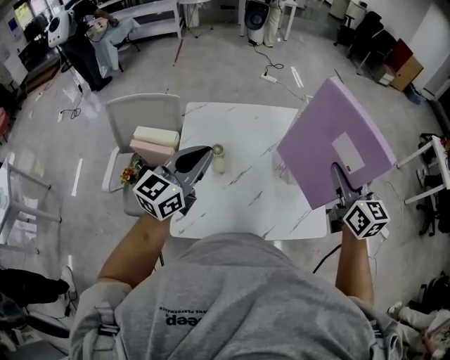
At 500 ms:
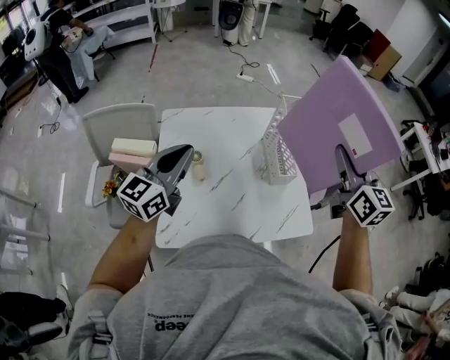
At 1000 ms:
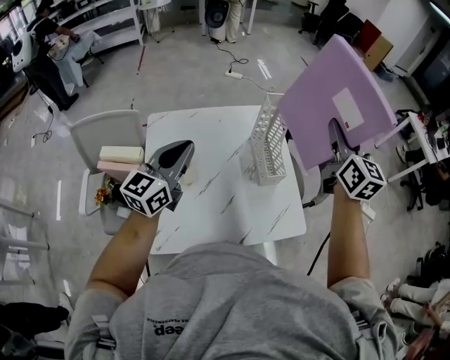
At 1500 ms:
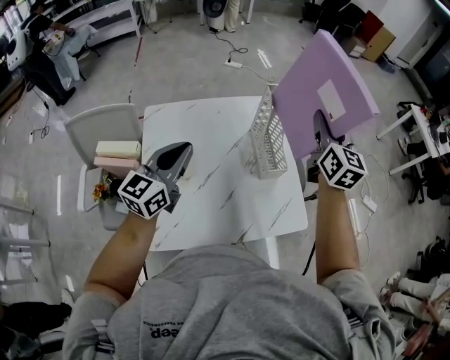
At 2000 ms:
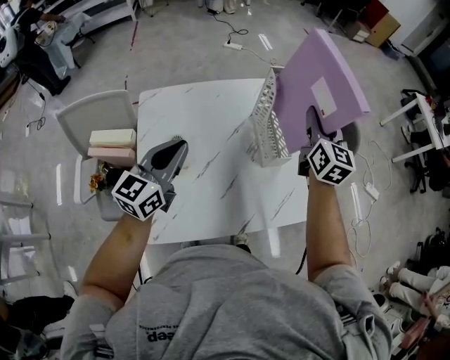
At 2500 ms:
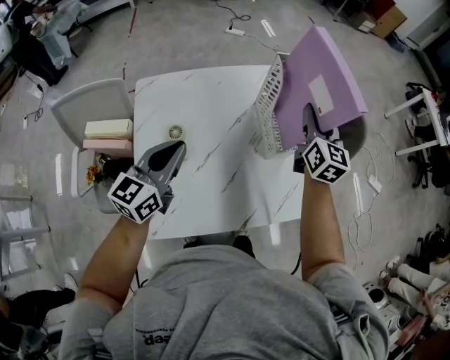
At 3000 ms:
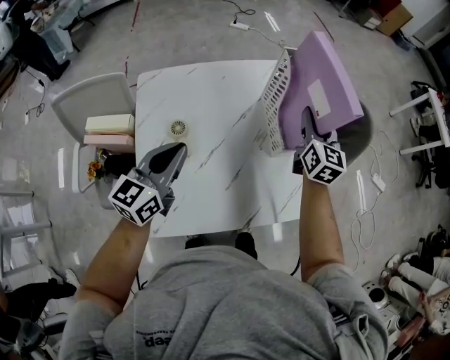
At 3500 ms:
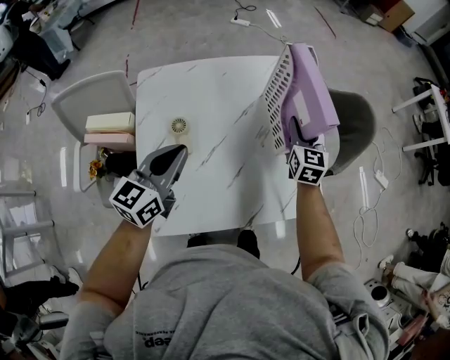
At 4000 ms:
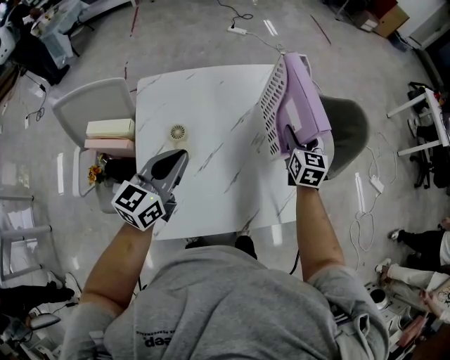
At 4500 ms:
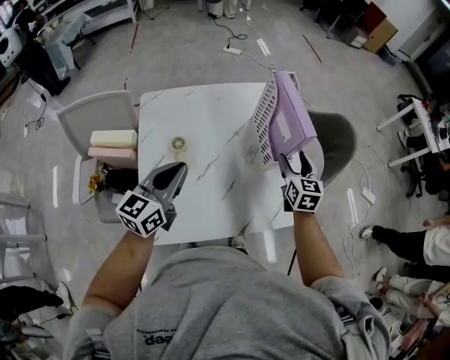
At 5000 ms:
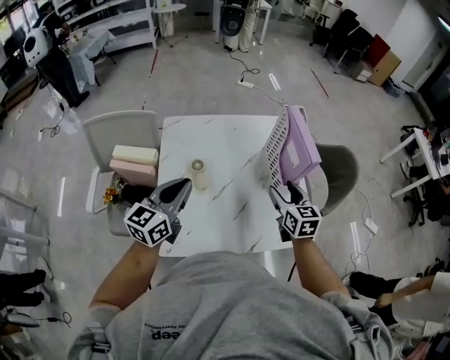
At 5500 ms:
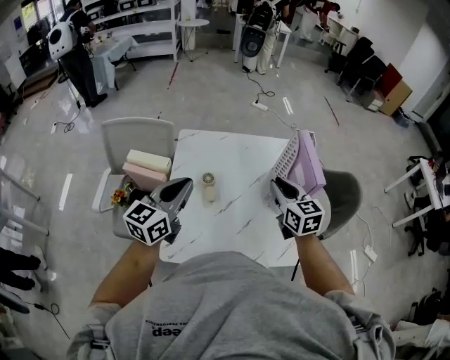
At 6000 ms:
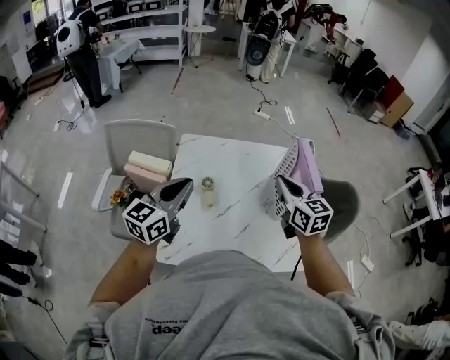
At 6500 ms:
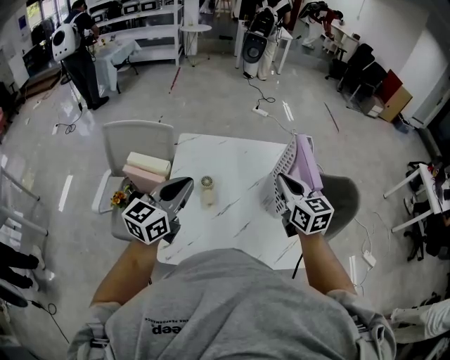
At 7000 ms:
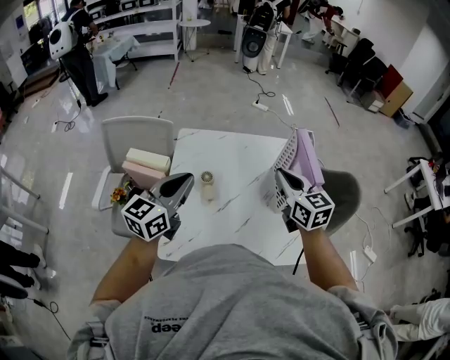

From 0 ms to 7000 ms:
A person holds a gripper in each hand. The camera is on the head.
From 0 ms to 2000 ms: The right gripper is displaced forward by approximately 15 cm, and changes its angle by some 20 degrees; the left gripper moves forward and downward, about 10 cm.
From 2000 ms to 3500 ms: The left gripper shifts some 5 cm downward, while the right gripper is displaced downward by roughly 20 cm.
From 3500 ms to 5000 ms: The left gripper shifts approximately 10 cm upward and backward. The right gripper goes about 15 cm backward and upward, and opens up.
From 5000 ms to 7000 ms: The left gripper goes some 5 cm upward. Meanwhile the right gripper is displaced upward and to the left by approximately 15 cm, changes its angle by some 20 degrees, and closes its fingers.

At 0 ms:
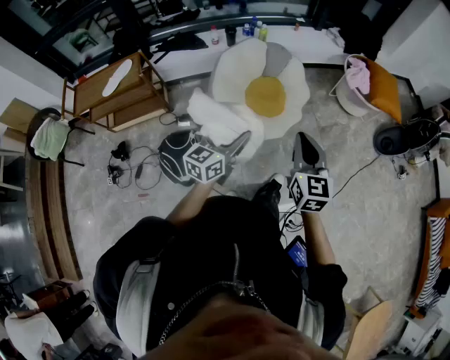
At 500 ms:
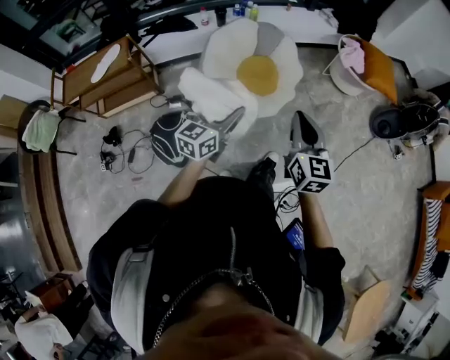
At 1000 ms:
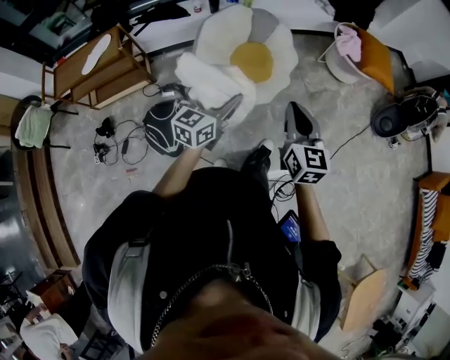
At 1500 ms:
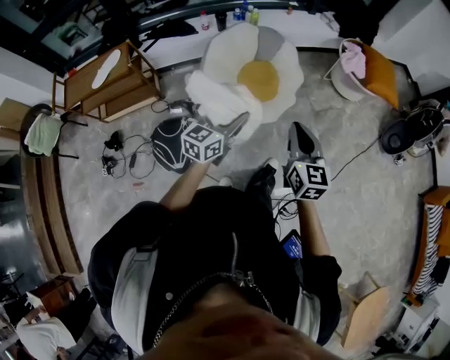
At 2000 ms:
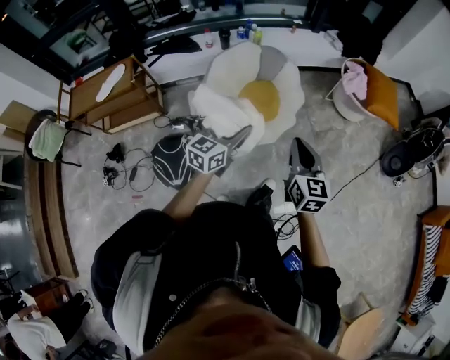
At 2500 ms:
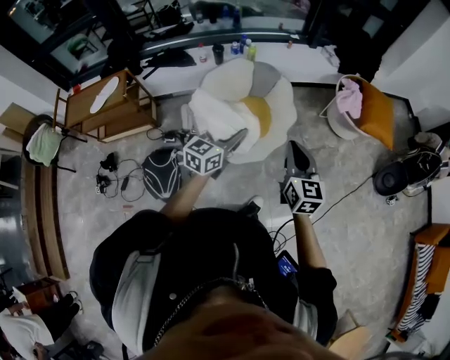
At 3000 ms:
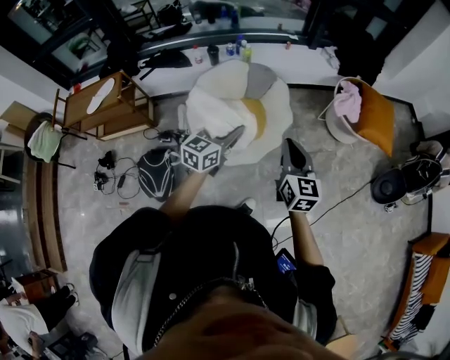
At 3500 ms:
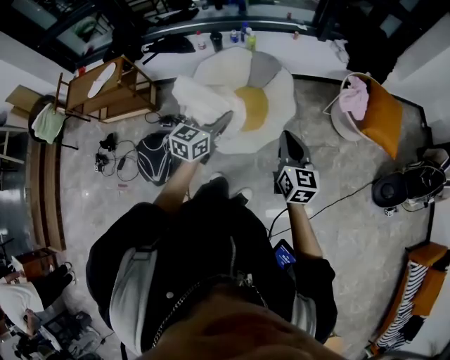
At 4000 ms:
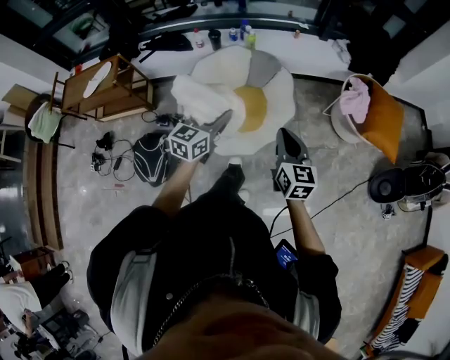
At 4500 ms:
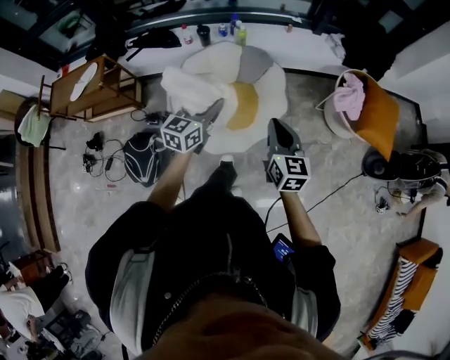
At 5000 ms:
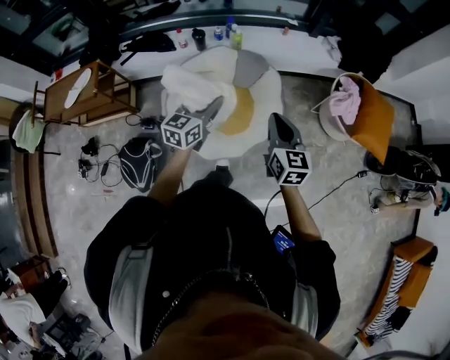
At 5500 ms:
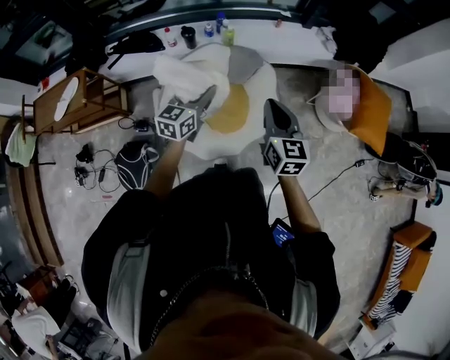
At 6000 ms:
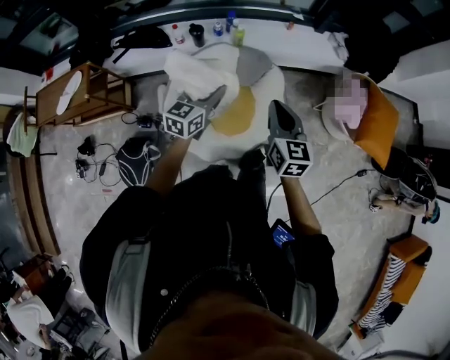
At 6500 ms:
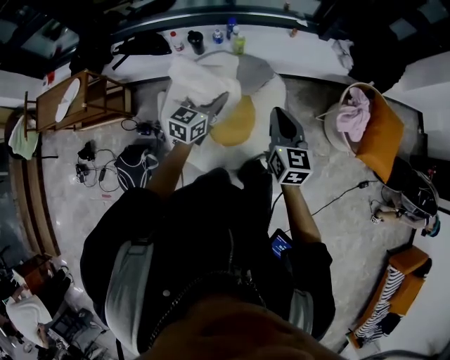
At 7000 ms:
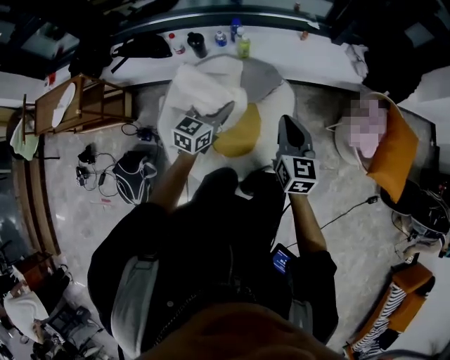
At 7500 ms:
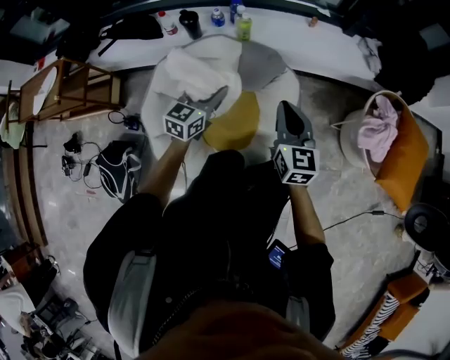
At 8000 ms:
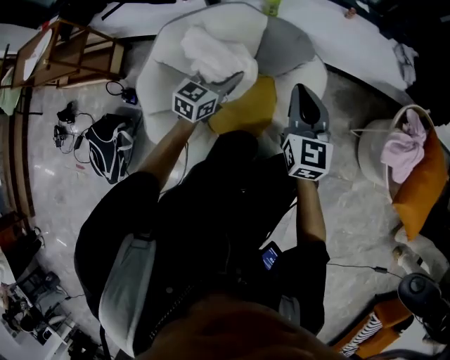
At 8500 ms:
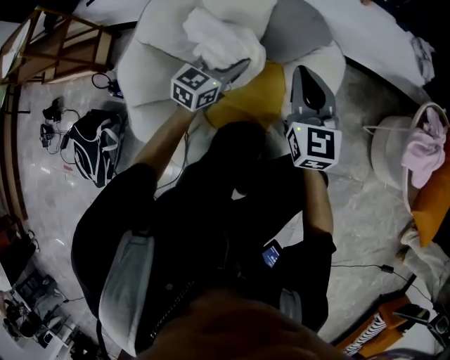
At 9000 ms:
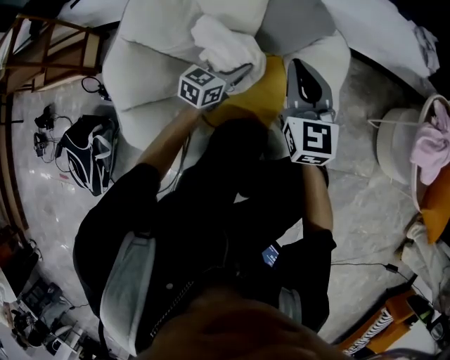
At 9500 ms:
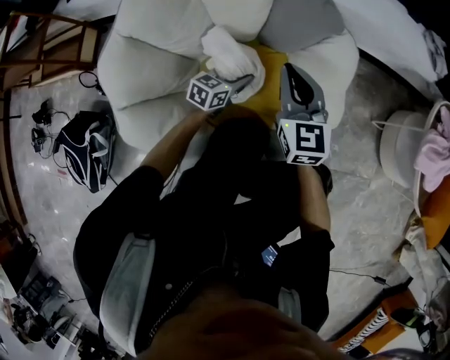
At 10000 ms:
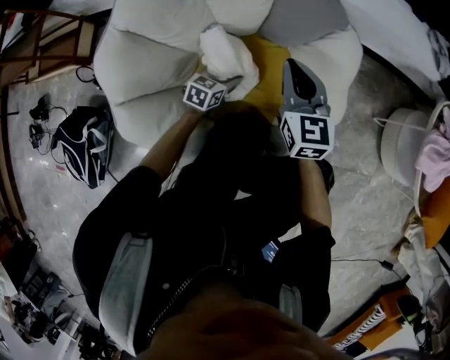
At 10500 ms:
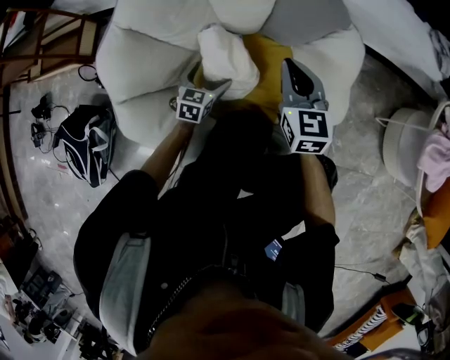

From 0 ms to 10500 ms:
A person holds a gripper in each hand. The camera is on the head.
From 0 ms to 2000 ms: Both grippers travel together forward, about 10 cm.
From 2000 ms to 4000 ms: Both grippers move forward and to the right, about 25 cm.
From 4000 ms to 6500 ms: The grippers both shift forward by some 30 cm.
From 6500 ms to 8500 ms: Both grippers travel together downward, roughly 40 cm. The right gripper changes its angle by approximately 20 degrees.
From 8500 ms to 10500 ms: The right gripper shifts roughly 15 cm downward, while the left gripper moves downward, some 25 cm, swivels some 30 degrees, and opens its fingers.

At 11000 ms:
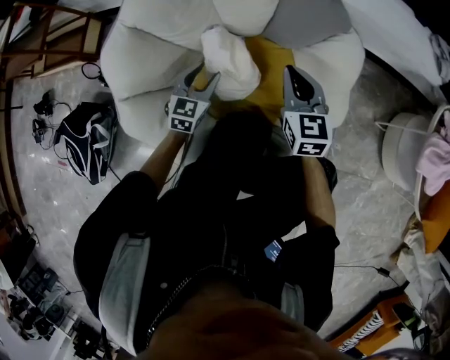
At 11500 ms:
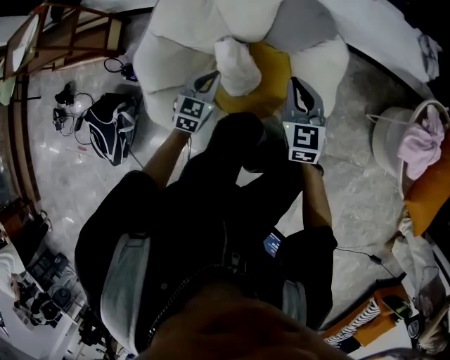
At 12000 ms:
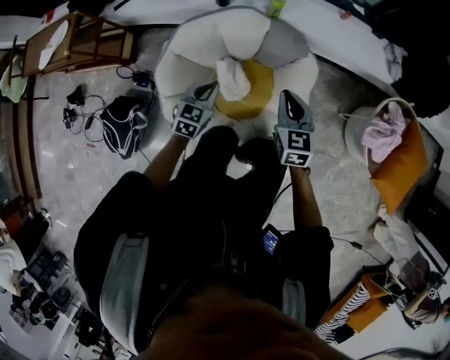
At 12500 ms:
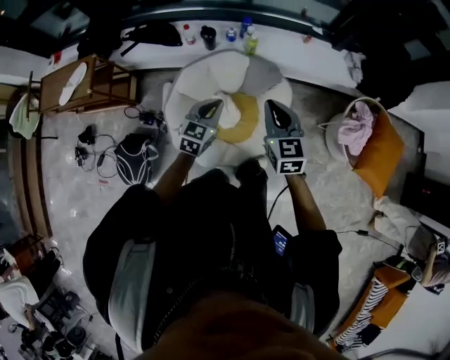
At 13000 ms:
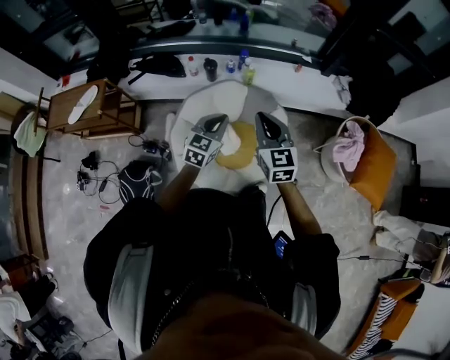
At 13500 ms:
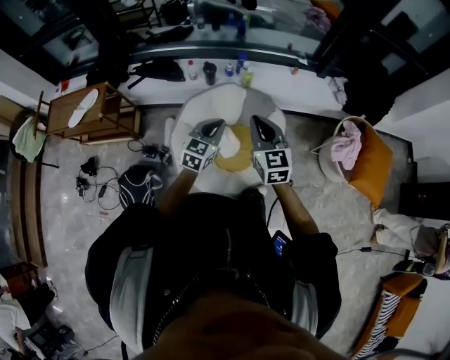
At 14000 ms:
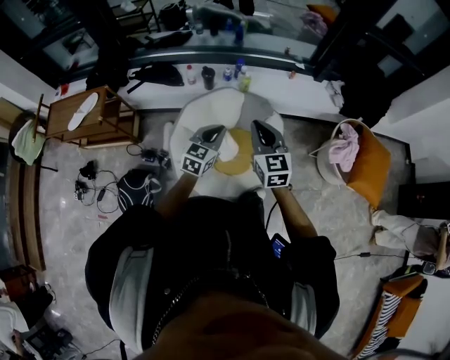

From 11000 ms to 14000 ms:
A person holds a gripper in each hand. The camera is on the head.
From 11000 ms to 12500 ms: The grippers both shift upward by some 60 cm. The left gripper closes its fingers.
From 12500 ms to 14000 ms: The right gripper is displaced upward and to the left by approximately 10 cm. The left gripper moves upward, about 5 cm.

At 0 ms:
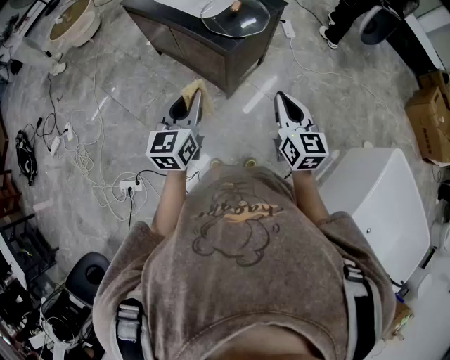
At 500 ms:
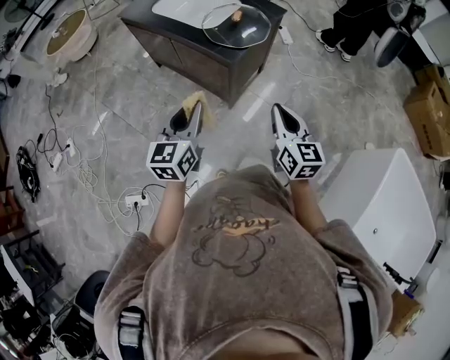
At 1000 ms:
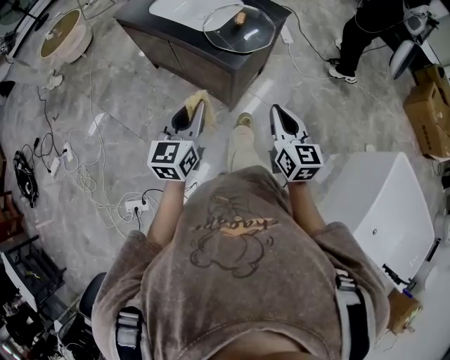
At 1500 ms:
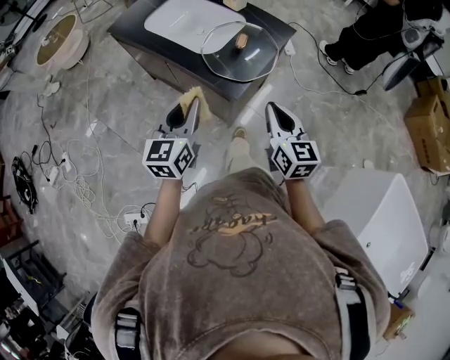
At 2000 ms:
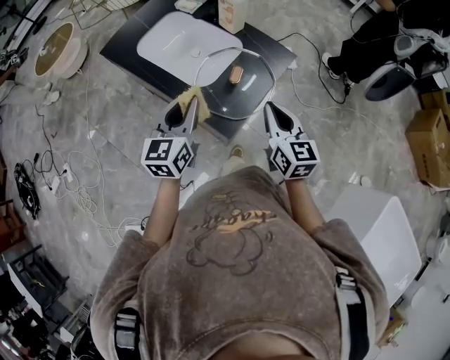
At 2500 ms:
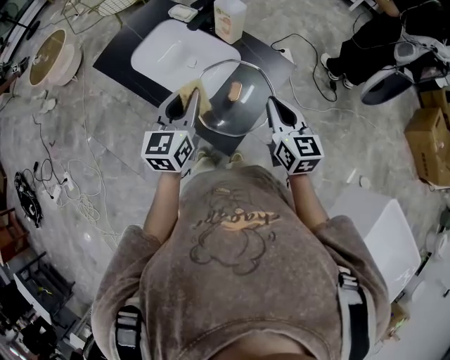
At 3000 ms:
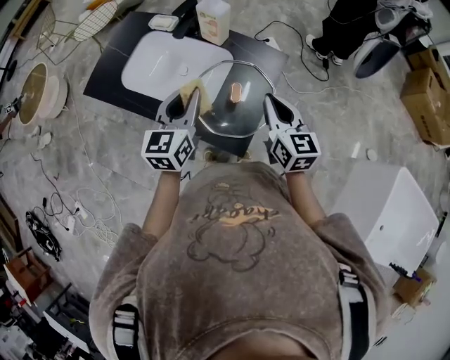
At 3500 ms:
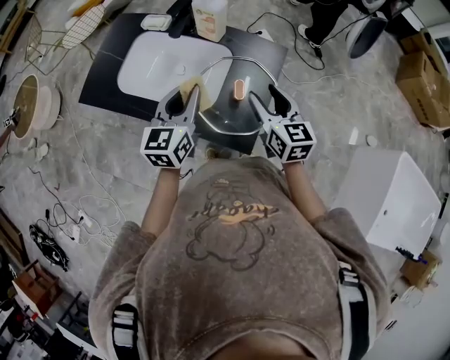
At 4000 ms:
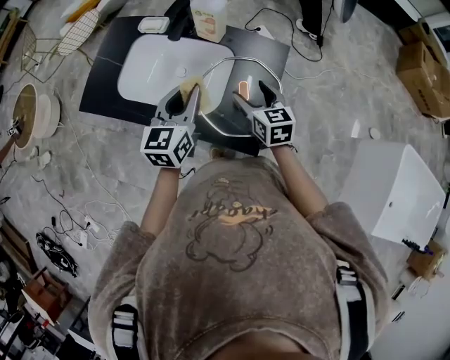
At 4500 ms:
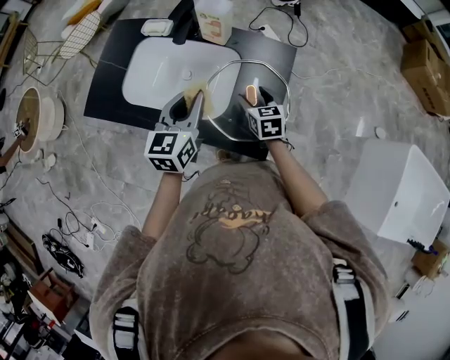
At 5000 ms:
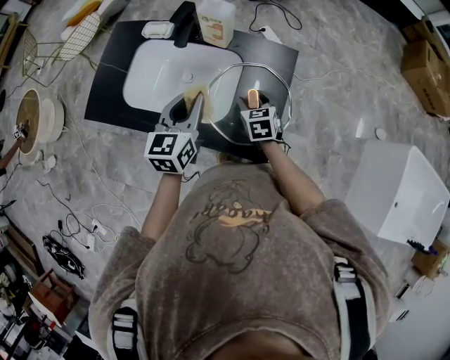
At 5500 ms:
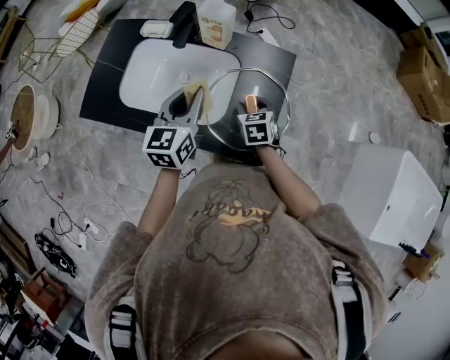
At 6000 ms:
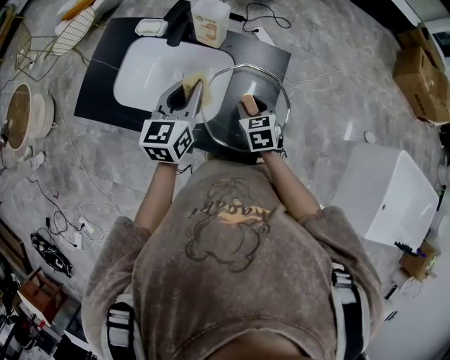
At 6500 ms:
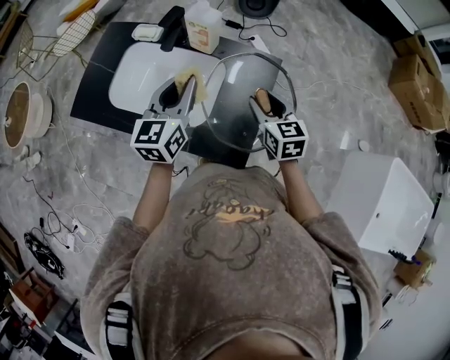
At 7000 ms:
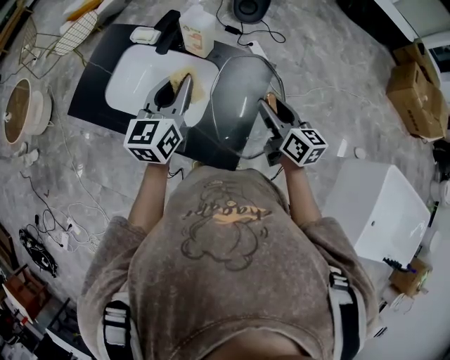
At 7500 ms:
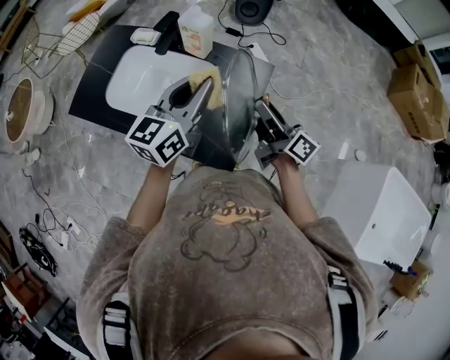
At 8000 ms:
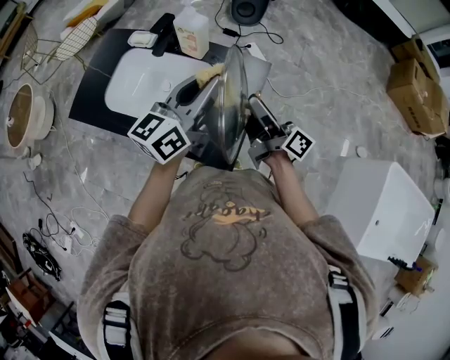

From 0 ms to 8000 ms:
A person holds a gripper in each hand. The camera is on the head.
From 0 ms to 2000 ms: Both grippers move forward, approximately 40 cm.
From 2000 ms to 4000 ms: The left gripper moves forward, roughly 15 cm, and rotates approximately 20 degrees, while the right gripper moves forward, to the left and downward, approximately 20 cm, and opens up.
From 4000 ms to 6000 ms: The right gripper moves downward, approximately 5 cm, changes its angle by about 20 degrees, and closes its fingers.
From 6000 ms to 8000 ms: The left gripper goes roughly 15 cm to the right and upward, and turns by approximately 30 degrees. Meanwhile the right gripper heads upward and to the right, covering roughly 20 cm, and angles its fingers upward, by approximately 60 degrees.
